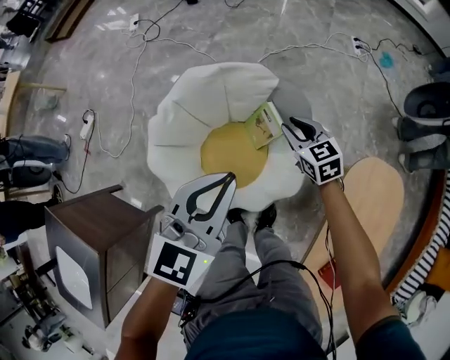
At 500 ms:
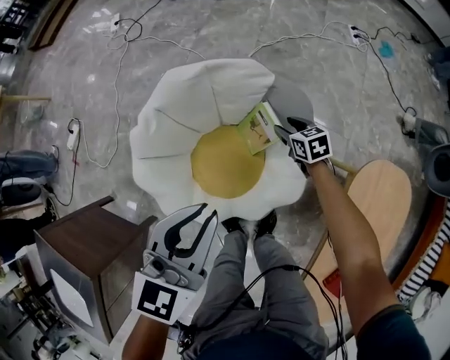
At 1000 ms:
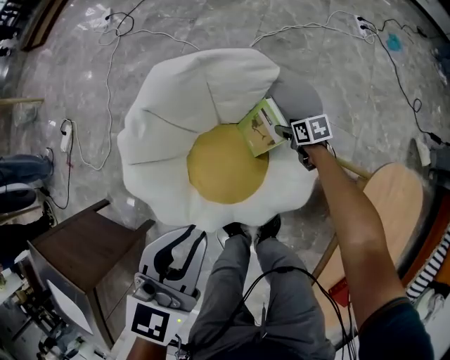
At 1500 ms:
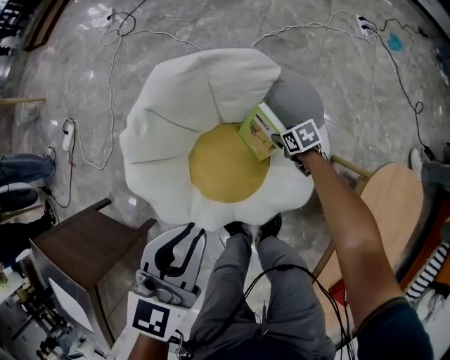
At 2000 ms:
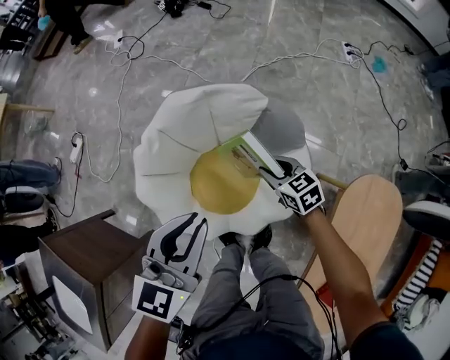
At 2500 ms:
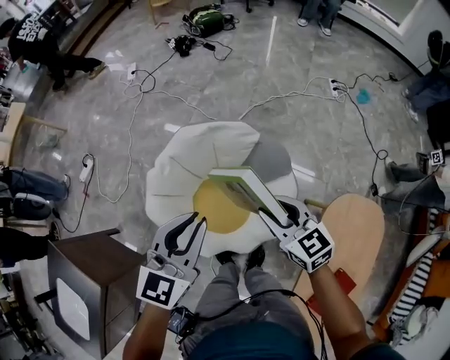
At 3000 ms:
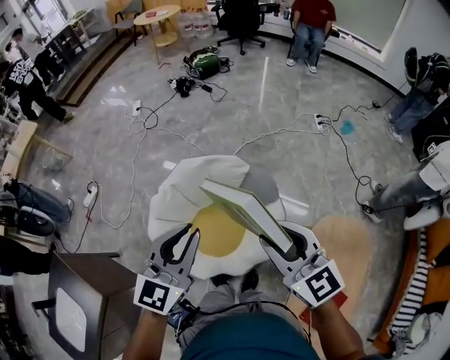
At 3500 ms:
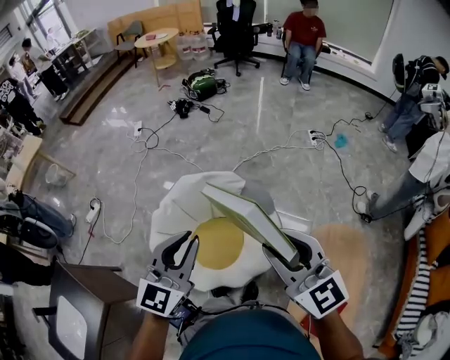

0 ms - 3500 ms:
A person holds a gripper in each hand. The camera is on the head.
0 ms - 2000 ms: The right gripper travels downward and back again, some 35 cm each way, and opens, then closes once more, while the left gripper heads downward, covering about 5 cm.
2000 ms - 3500 ms: The left gripper travels upward by some 25 cm, and swivels some 20 degrees, while the right gripper goes roughly 50 cm upward, and tilts its fingers roughly 40 degrees upward.

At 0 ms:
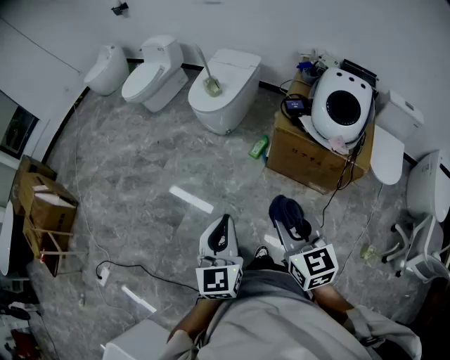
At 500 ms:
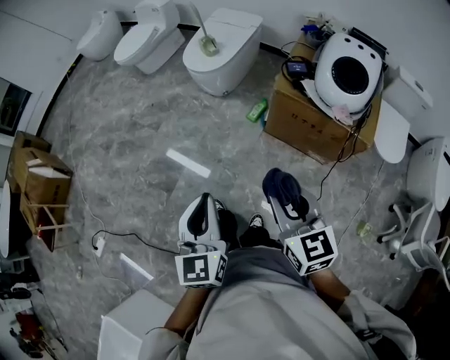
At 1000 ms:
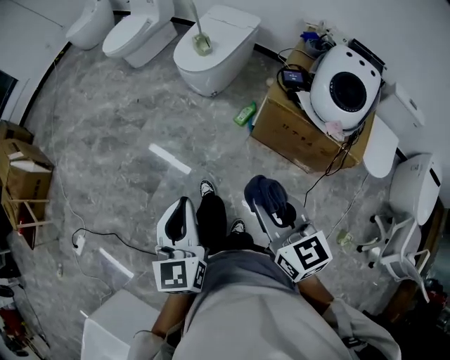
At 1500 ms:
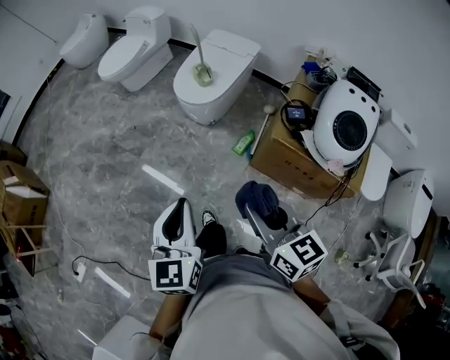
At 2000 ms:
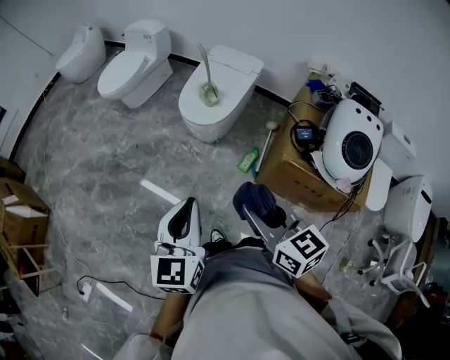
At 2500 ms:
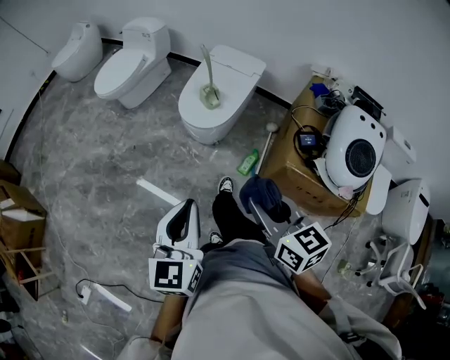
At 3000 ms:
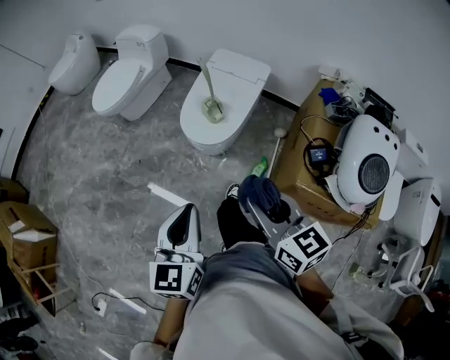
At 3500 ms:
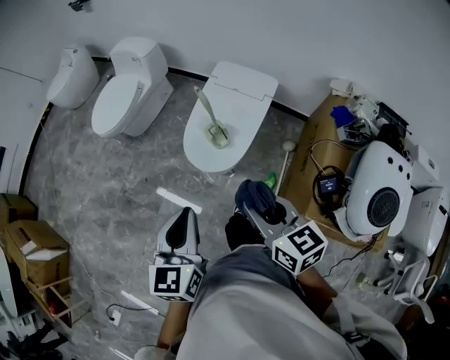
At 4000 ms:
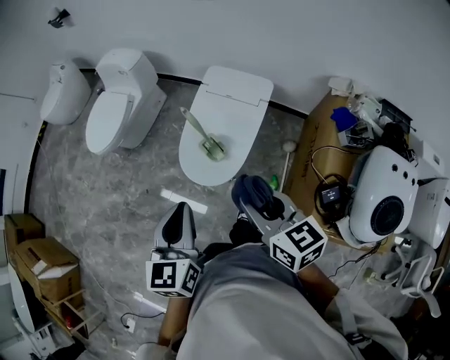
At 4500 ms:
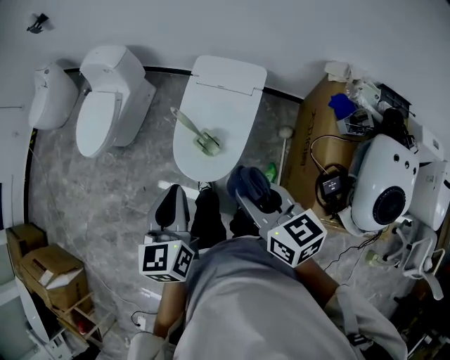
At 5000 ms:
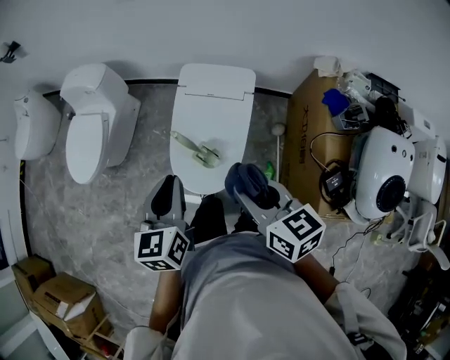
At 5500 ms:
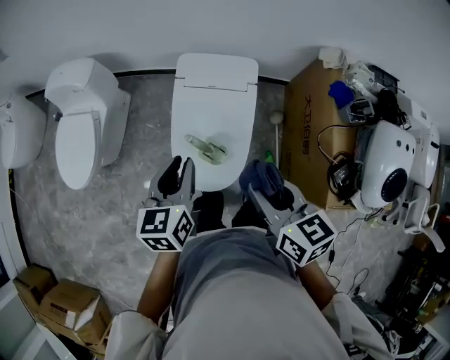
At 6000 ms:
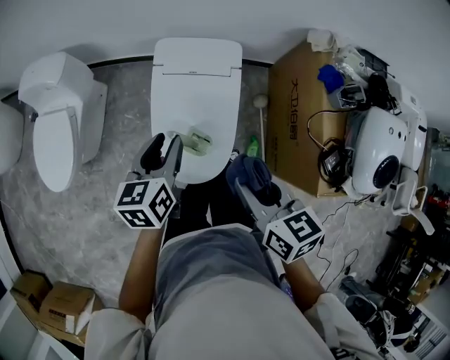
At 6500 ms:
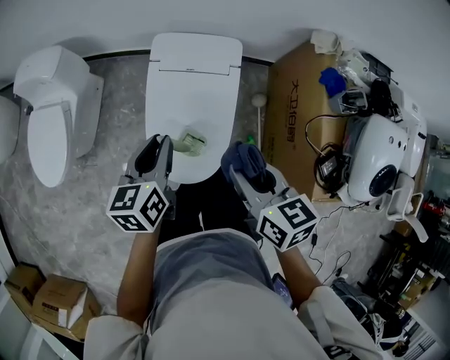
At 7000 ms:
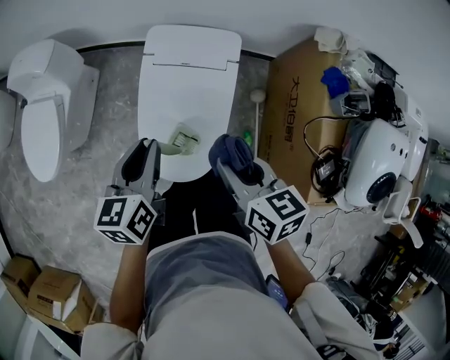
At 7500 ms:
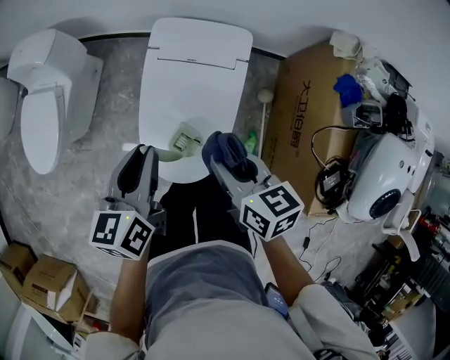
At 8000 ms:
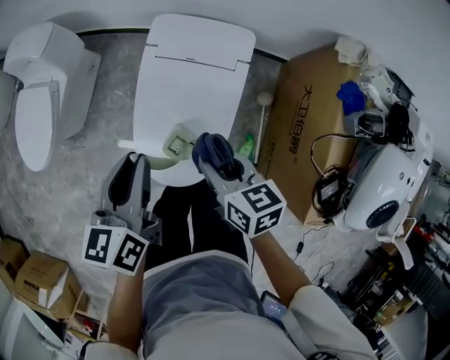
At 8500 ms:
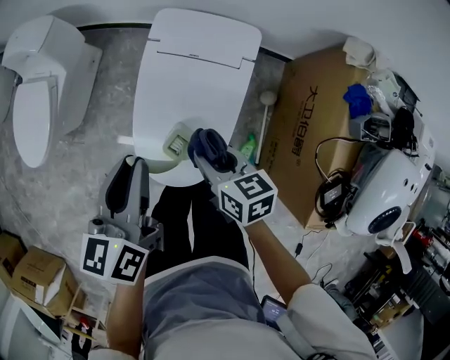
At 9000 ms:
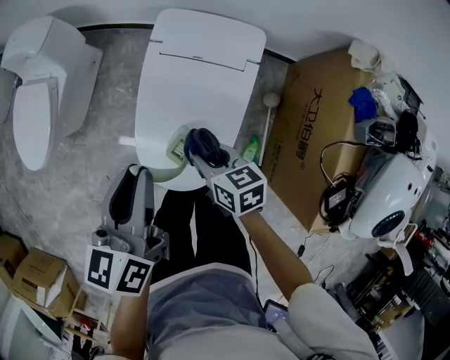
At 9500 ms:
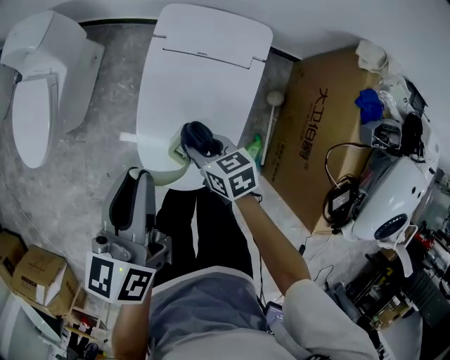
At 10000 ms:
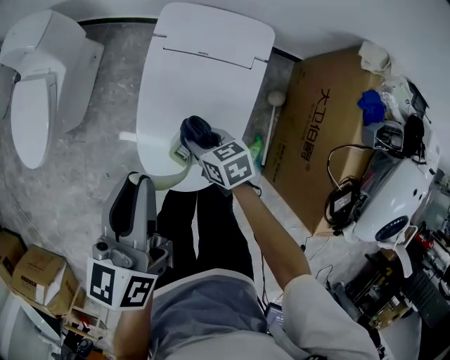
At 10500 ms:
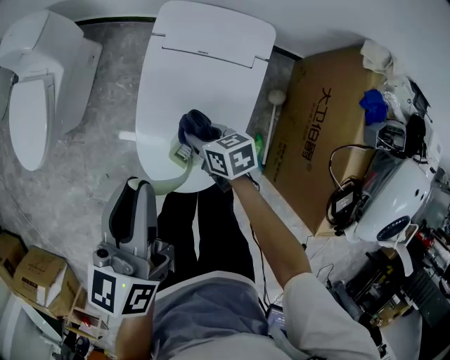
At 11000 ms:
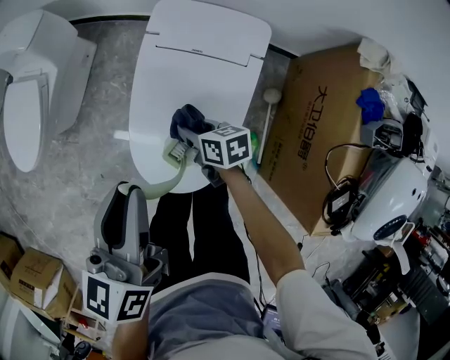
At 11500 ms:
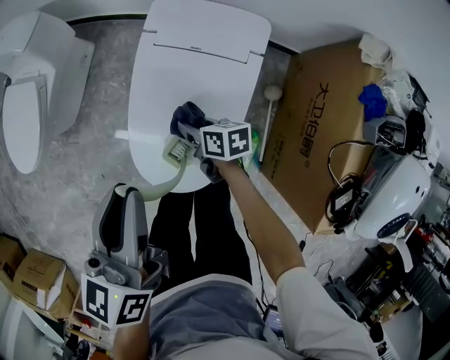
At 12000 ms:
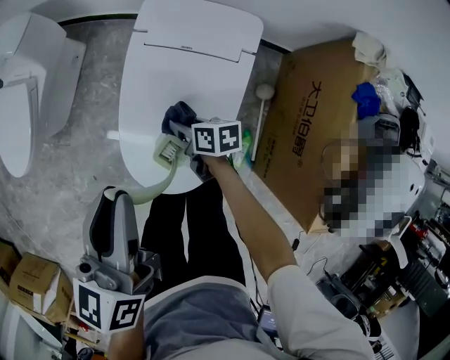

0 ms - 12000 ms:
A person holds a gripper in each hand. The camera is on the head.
0 ms - 2000 ms: The left gripper changes place by approximately 35 cm.
2000 ms - 4000 ms: The left gripper changes place by roughly 50 cm.
4000 ms - 6000 ms: The left gripper ends up approximately 35 cm from where it was, and turns by about 30 degrees.

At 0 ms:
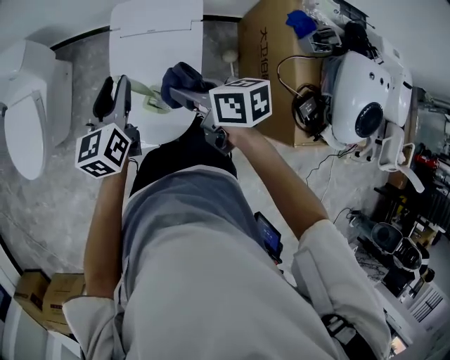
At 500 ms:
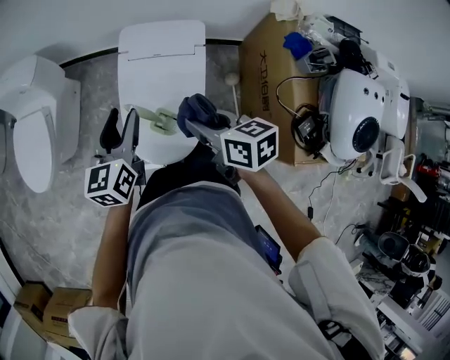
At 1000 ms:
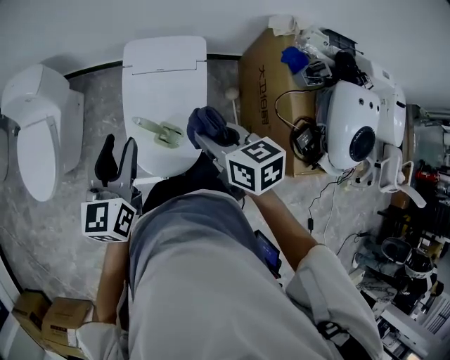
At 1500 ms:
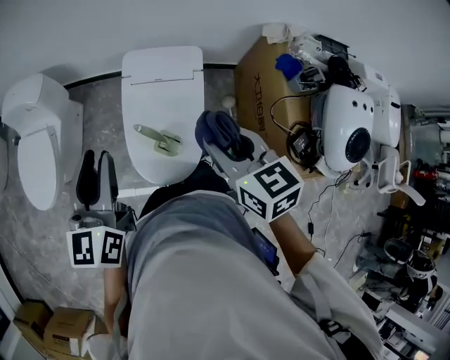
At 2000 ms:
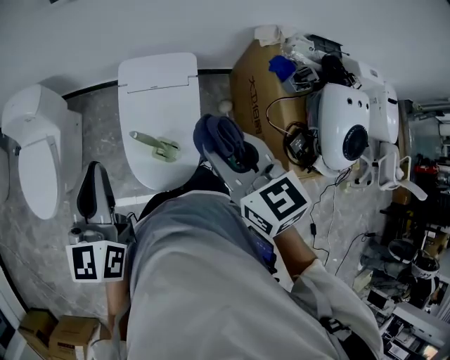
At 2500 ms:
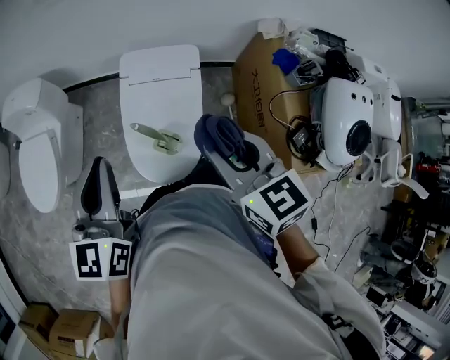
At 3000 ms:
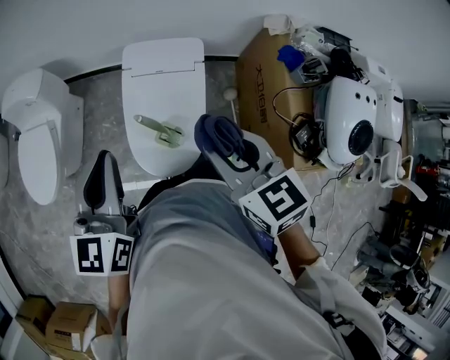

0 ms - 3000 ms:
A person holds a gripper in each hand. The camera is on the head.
0 ms - 1500 ms: The left gripper goes some 15 cm upward.

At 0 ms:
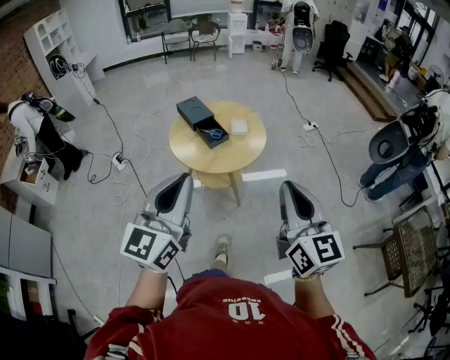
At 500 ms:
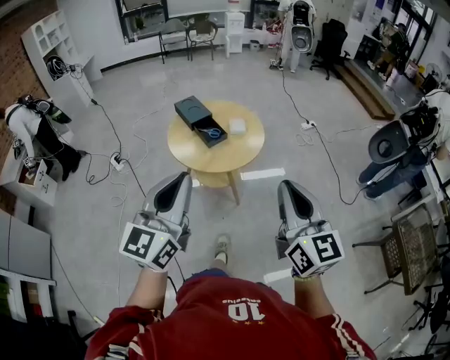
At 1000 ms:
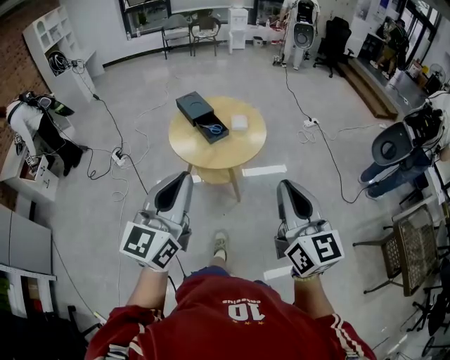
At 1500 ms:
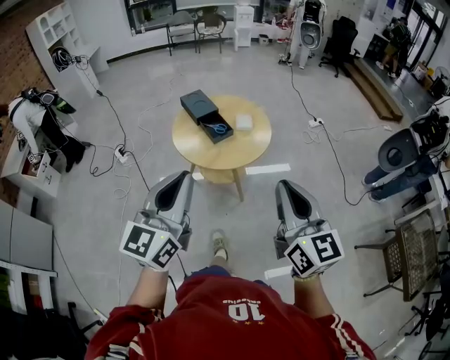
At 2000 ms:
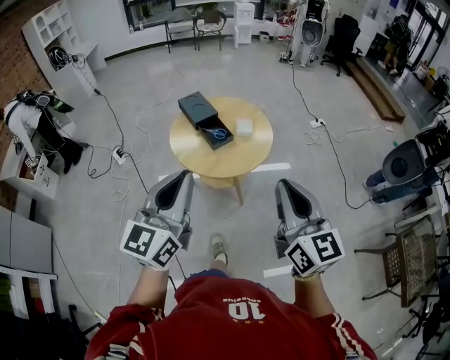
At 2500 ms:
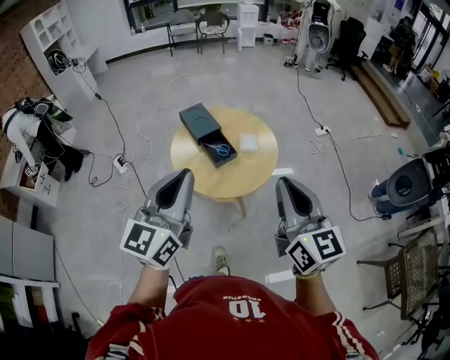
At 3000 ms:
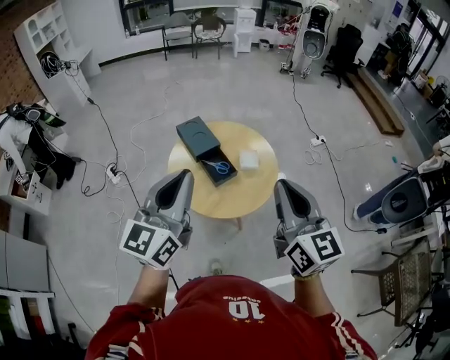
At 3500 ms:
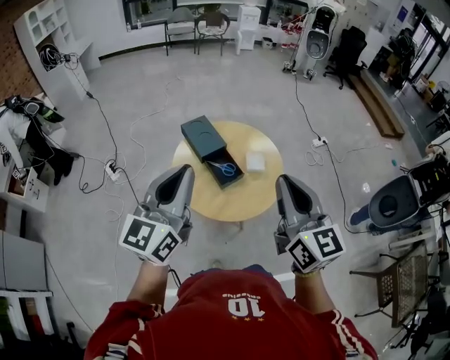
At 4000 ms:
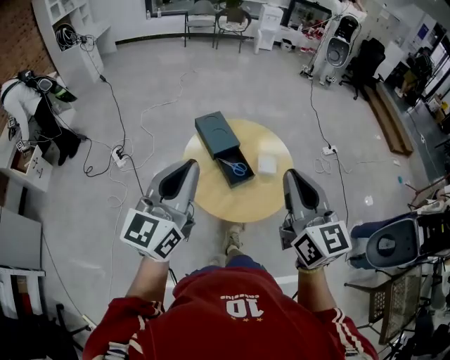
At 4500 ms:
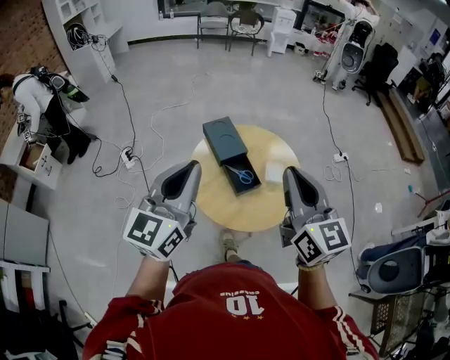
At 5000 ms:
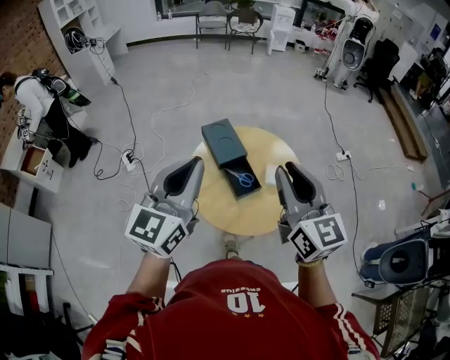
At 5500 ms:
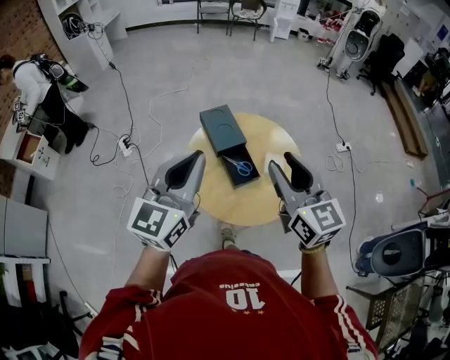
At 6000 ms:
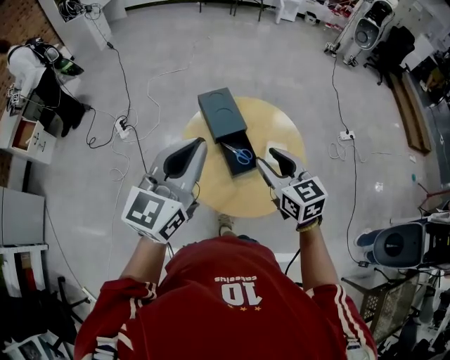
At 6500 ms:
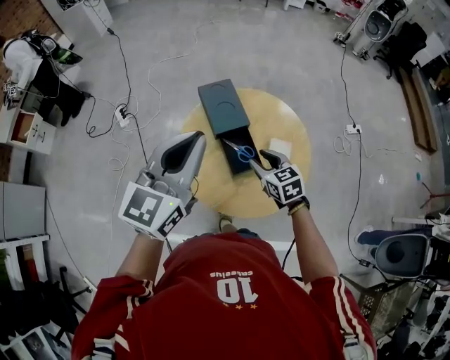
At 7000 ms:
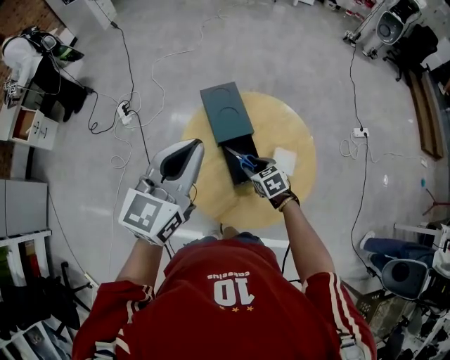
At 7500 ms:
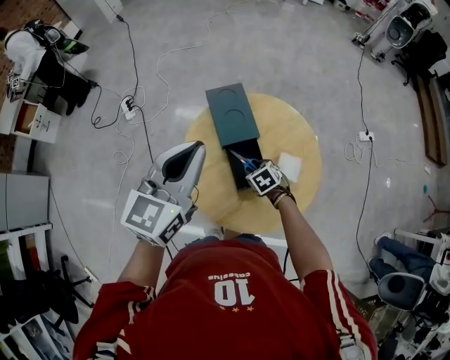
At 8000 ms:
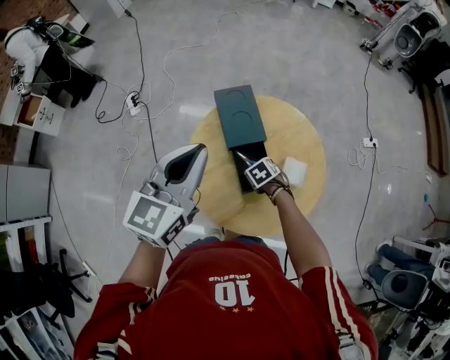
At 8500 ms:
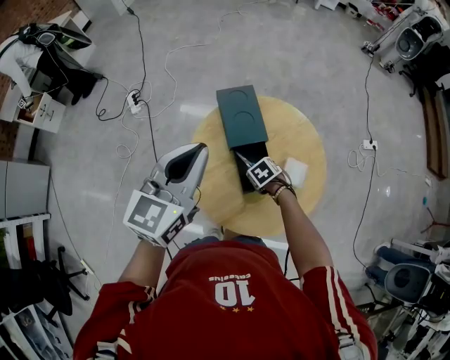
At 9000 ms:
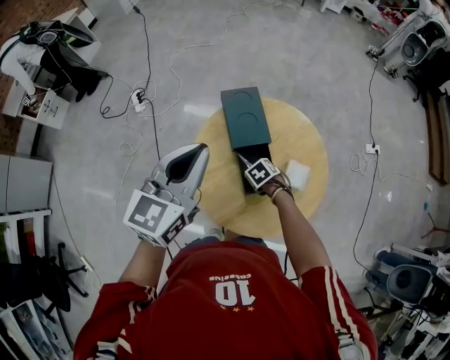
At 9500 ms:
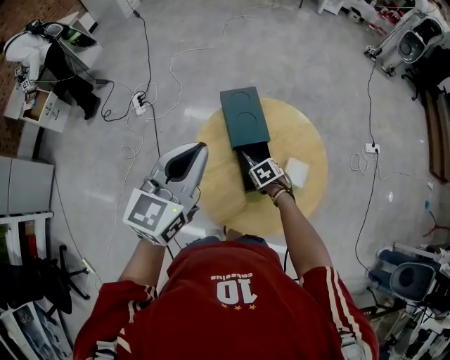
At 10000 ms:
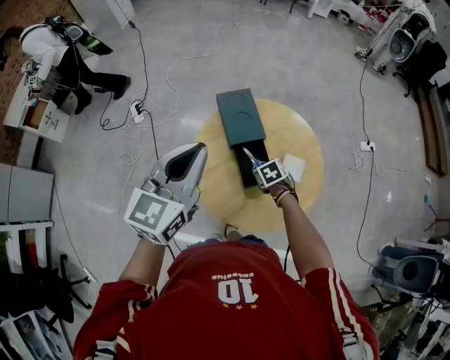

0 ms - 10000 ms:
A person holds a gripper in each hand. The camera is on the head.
0 ms - 2000 ms: The two grippers go approximately 10 cm forward.
2000 ms - 4000 ms: The grippers both shift forward and to the left by approximately 25 cm.
4000 ms - 6000 ms: The left gripper travels forward and downward by roughly 10 cm, while the right gripper shifts approximately 25 cm downward and forward, turns by approximately 30 degrees, and opens.
6000 ms - 8000 ms: The left gripper changes place by about 15 cm, while the right gripper heads downward, covering about 35 cm, and angles its fingers downward, by approximately 60 degrees.
8000 ms - 10000 ms: The left gripper changes place by about 5 cm.
